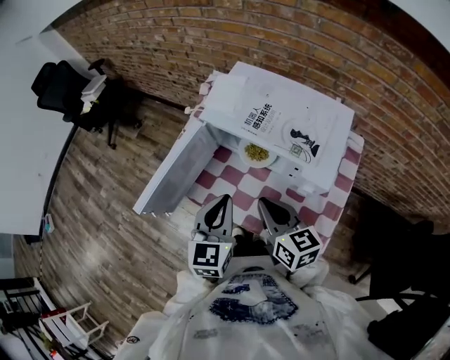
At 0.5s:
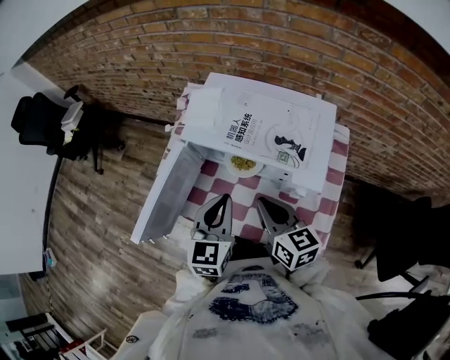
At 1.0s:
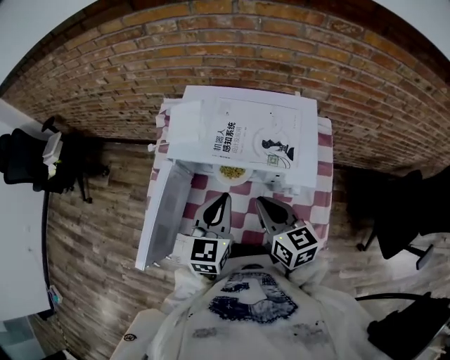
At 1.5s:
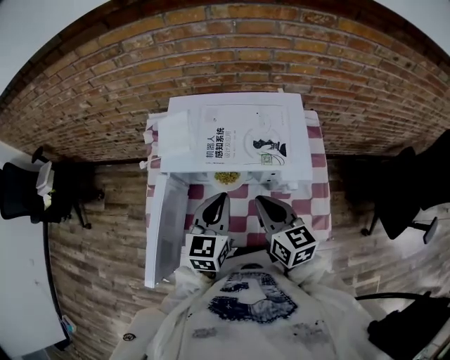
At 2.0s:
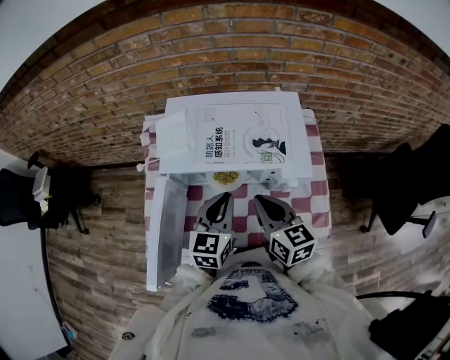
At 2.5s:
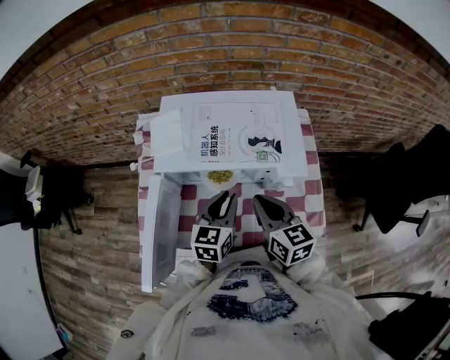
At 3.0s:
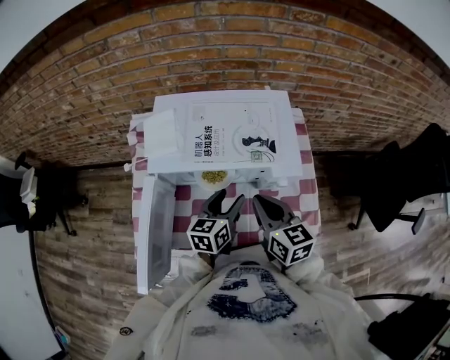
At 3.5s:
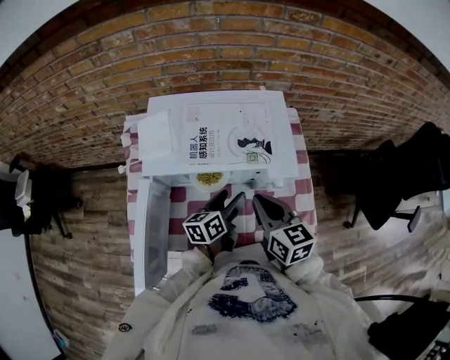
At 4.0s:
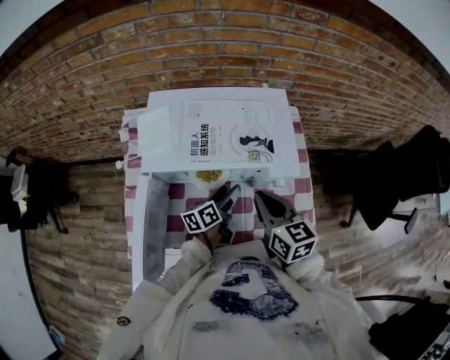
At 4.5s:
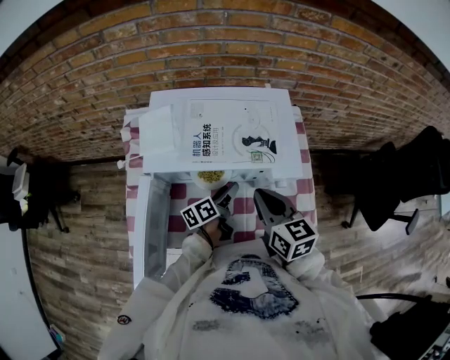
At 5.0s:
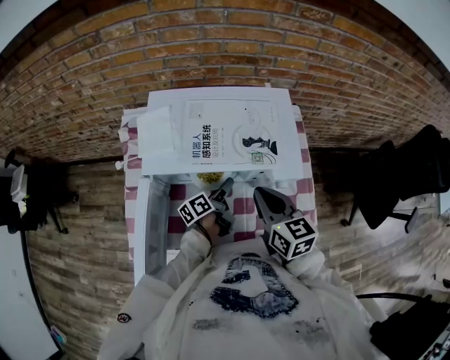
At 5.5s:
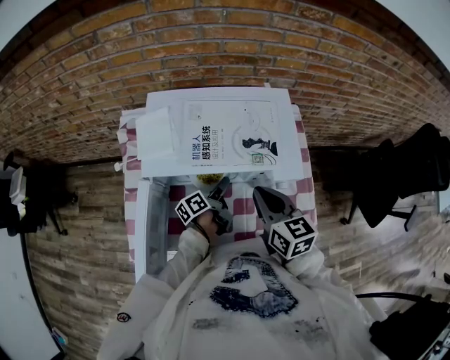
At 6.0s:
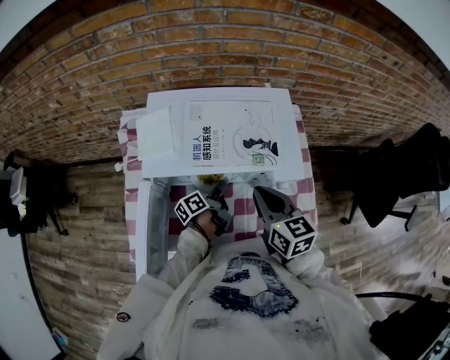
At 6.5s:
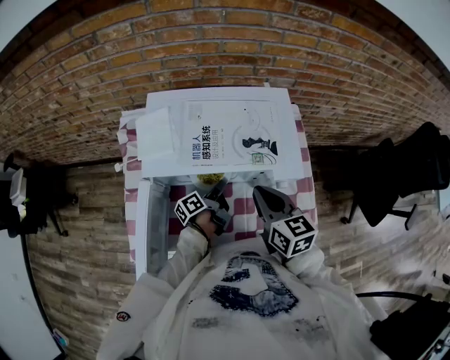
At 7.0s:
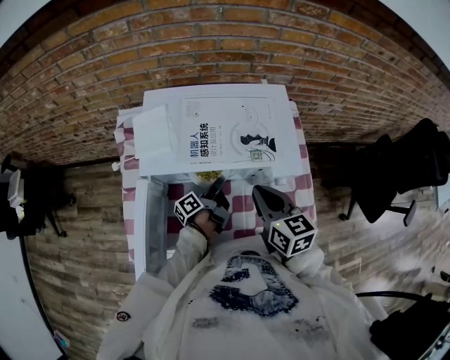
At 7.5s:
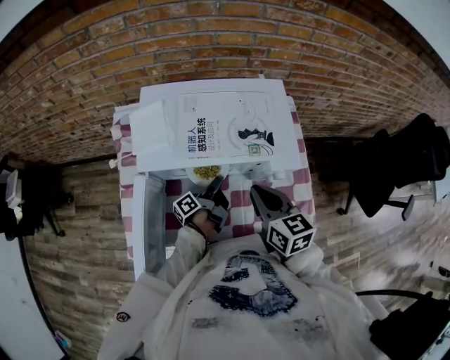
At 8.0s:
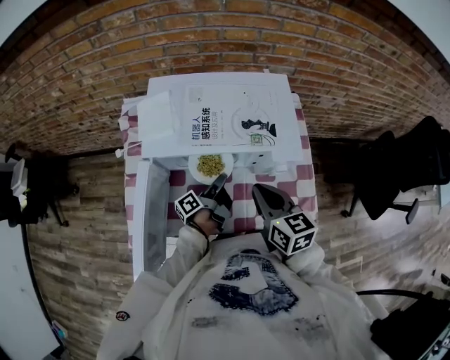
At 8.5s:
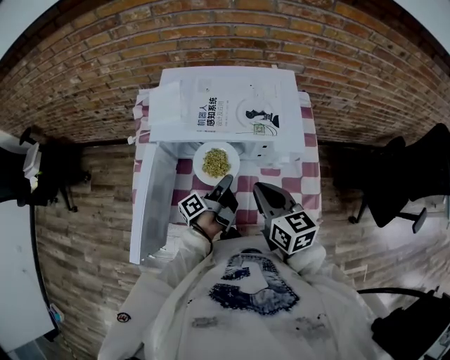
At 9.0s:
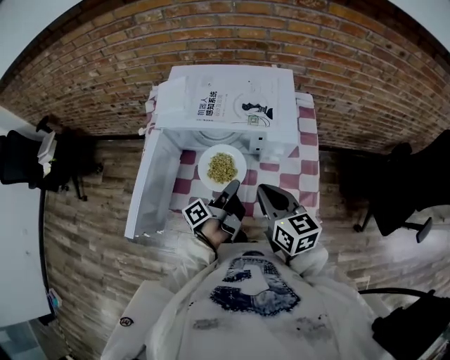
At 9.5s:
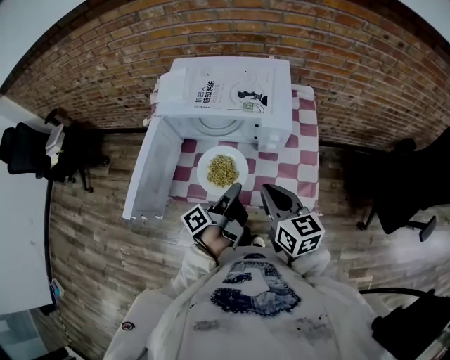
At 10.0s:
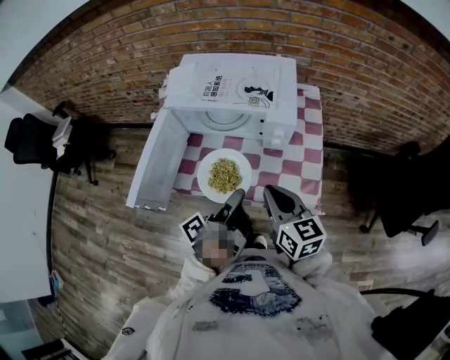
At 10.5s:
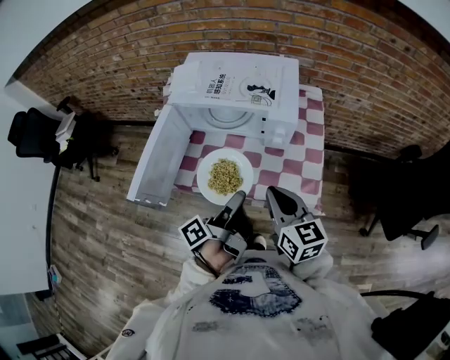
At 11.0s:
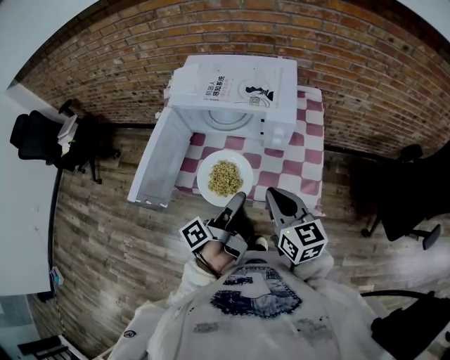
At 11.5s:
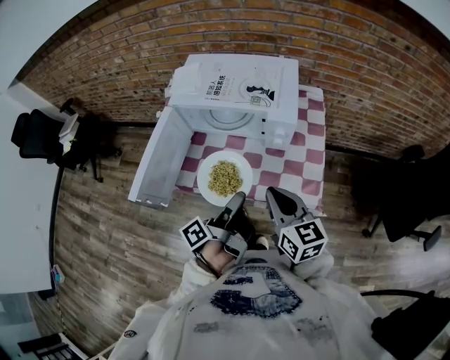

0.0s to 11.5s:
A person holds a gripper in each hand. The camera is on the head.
0.0s to 2.0s: The left gripper changes place by some 10 cm, and rotates approximately 30 degrees. Meanwhile the right gripper moves some 5 cm, and swivels roughly 30 degrees.
2.0s to 4.0s: The left gripper goes some 15 cm downward, twists roughly 50 degrees counterclockwise, seen from behind, and opens up.
4.0s to 6.0s: The left gripper goes some 5 cm downward, swivels approximately 20 degrees, and closes up.
6.0s to 7.5s: The grippers stay close to where they were, moving slightly.
7.5s to 9.5s: The left gripper travels backward and upward by some 25 cm, while the right gripper goes roughly 15 cm backward and to the right.
9.5s to 11.5s: The left gripper is displaced backward and upward by approximately 10 cm.

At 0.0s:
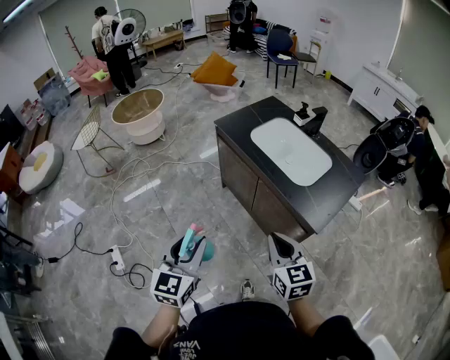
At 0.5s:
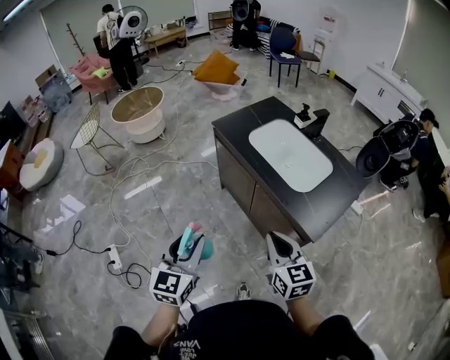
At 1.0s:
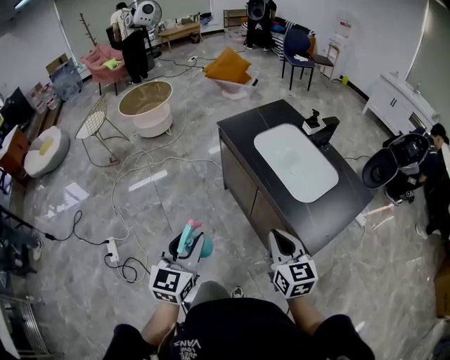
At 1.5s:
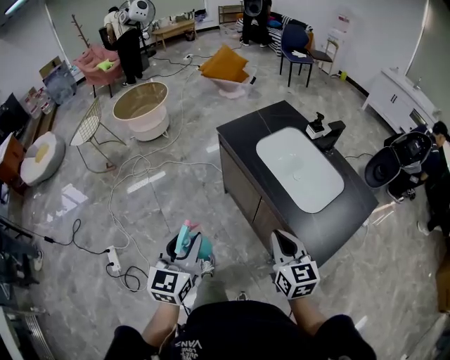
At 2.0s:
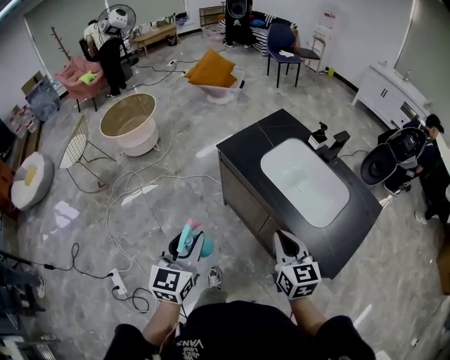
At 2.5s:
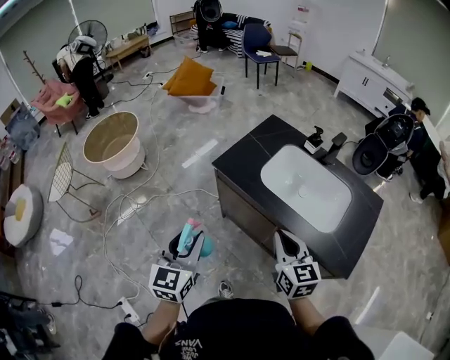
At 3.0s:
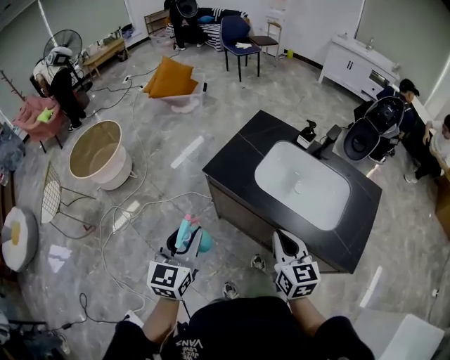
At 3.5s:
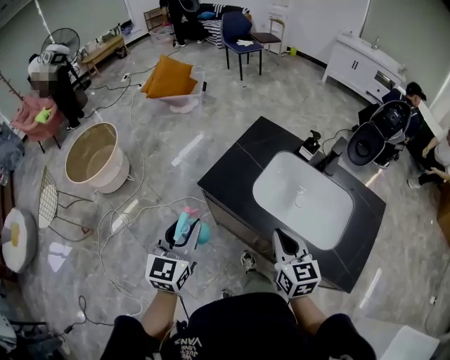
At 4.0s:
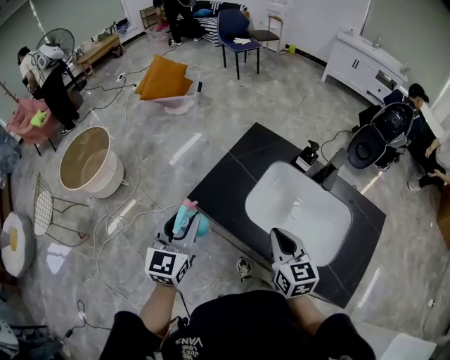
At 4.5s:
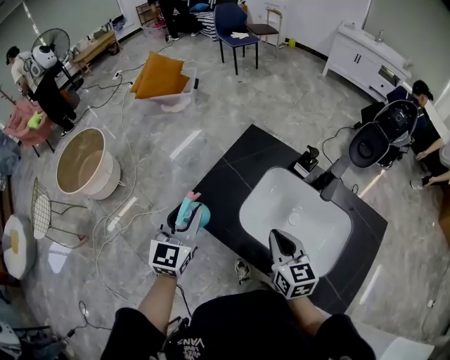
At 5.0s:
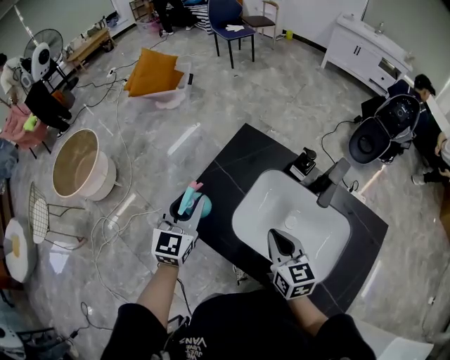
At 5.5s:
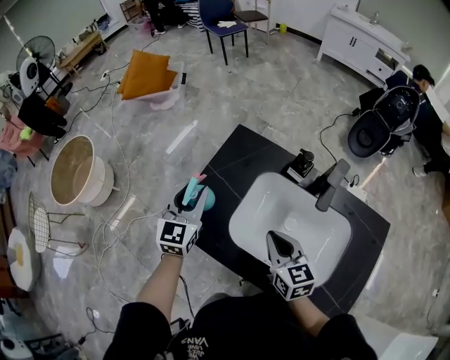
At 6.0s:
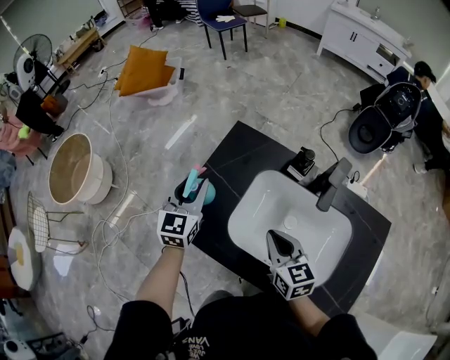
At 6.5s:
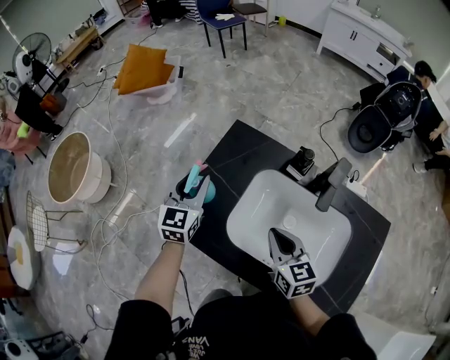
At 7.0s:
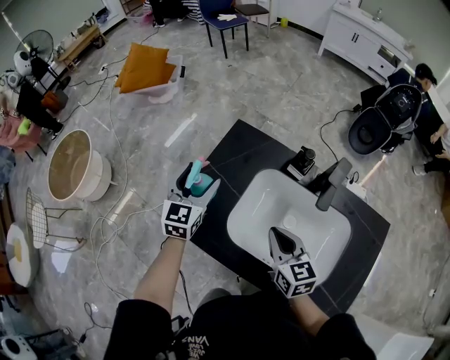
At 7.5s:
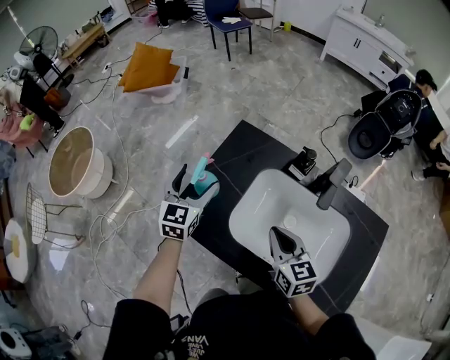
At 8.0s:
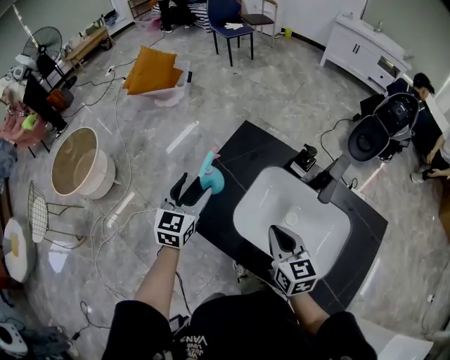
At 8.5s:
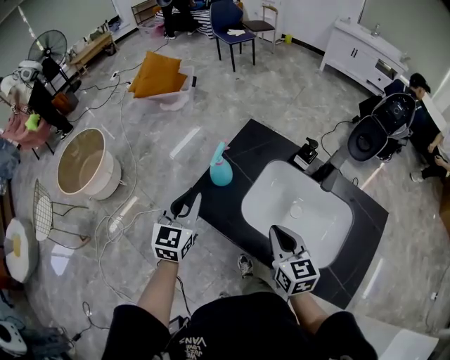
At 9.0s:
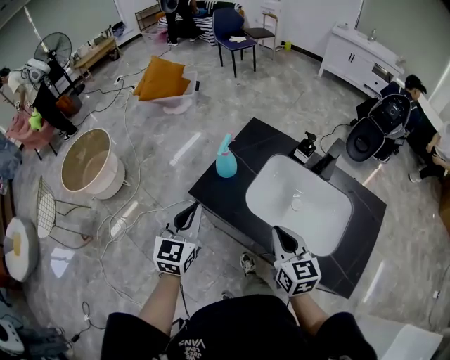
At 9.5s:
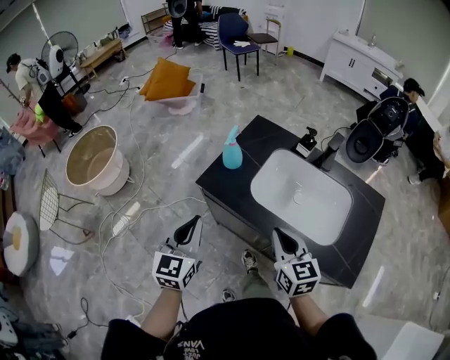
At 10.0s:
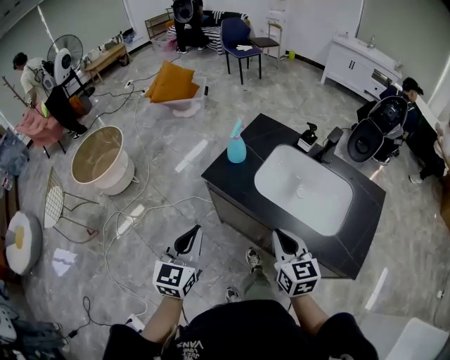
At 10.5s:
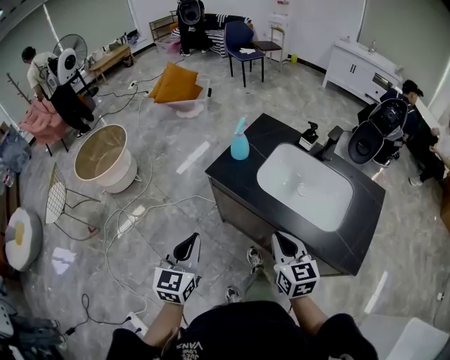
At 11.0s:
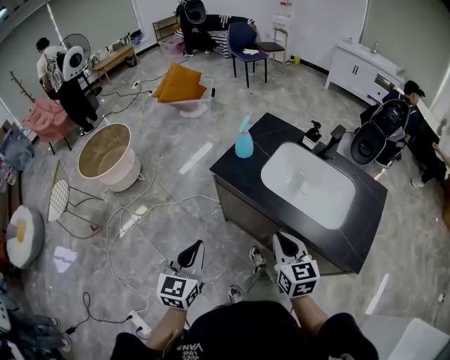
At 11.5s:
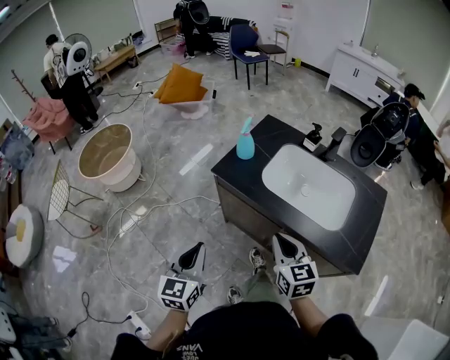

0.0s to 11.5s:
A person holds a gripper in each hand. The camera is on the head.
0.0s to 2.0s: Both grippers travel together forward, some 25 cm.
2.0s to 4.0s: Both grippers move forward, roughly 30 cm.
4.0s to 6.0s: The right gripper goes about 15 cm forward, downward and to the right. Meanwhile the left gripper travels forward and to the right by about 25 cm.
6.0s to 7.5s: The left gripper opens up.
7.5s to 9.5s: The left gripper heads backward, covering some 30 cm, and closes up. Meanwhile the right gripper heads backward, covering roughly 20 cm.
9.5s to 11.5s: The right gripper is displaced backward by some 10 cm. Meanwhile the left gripper goes approximately 15 cm backward.

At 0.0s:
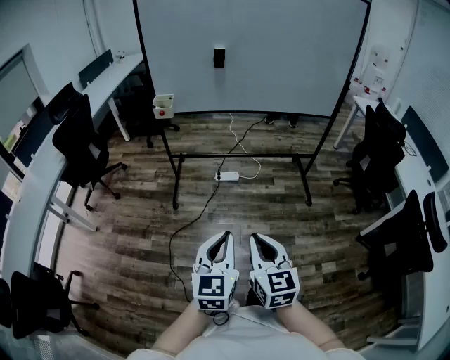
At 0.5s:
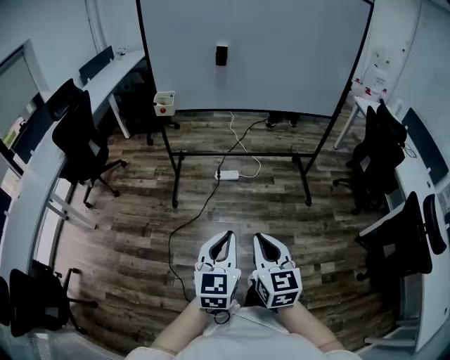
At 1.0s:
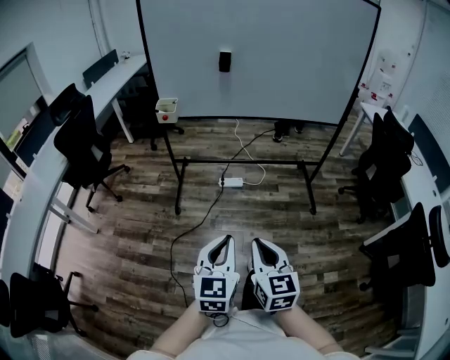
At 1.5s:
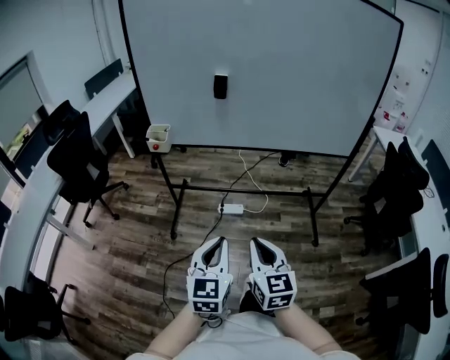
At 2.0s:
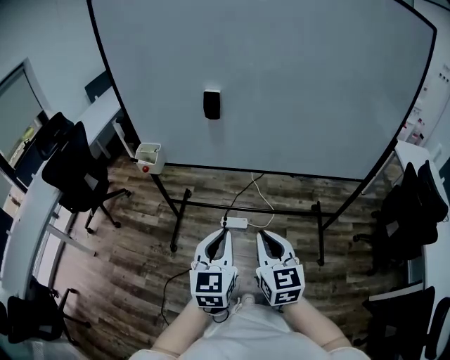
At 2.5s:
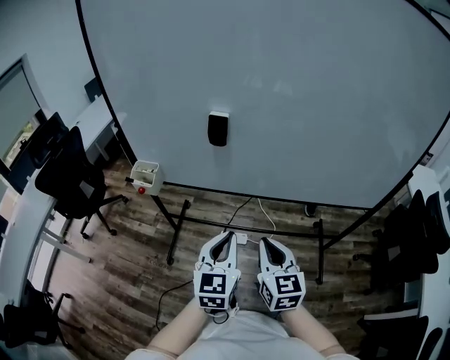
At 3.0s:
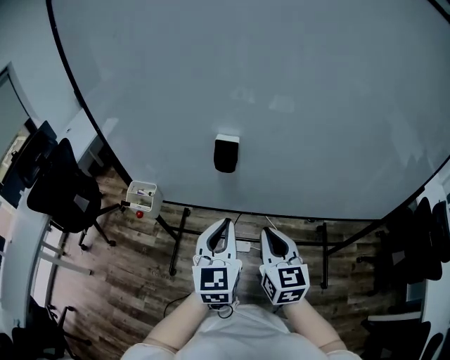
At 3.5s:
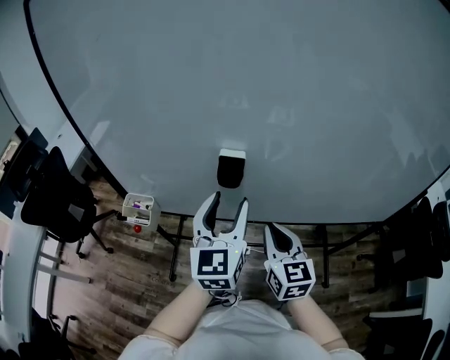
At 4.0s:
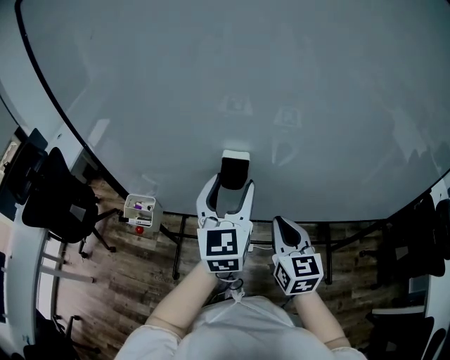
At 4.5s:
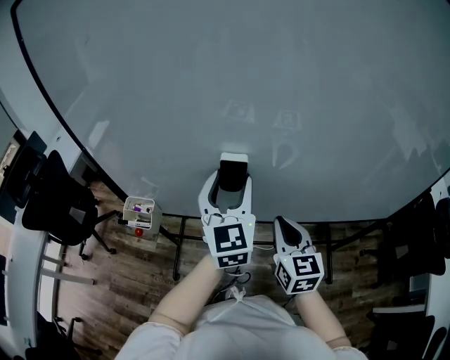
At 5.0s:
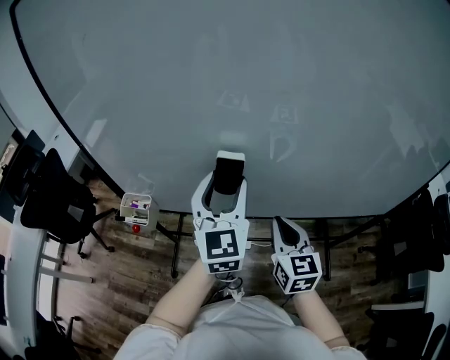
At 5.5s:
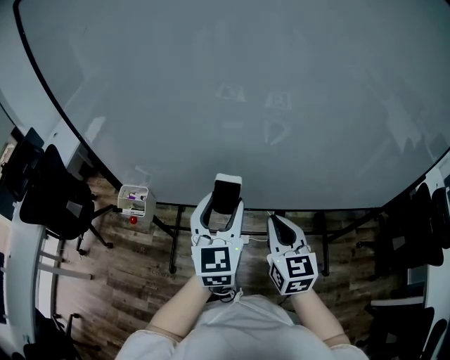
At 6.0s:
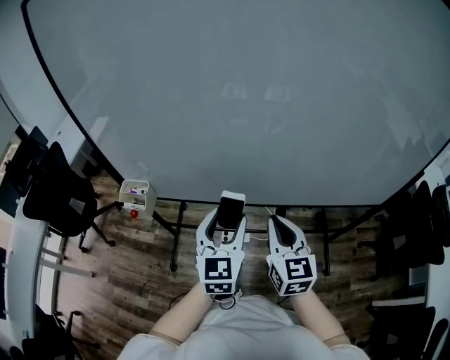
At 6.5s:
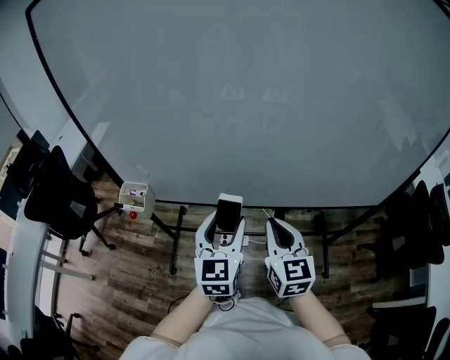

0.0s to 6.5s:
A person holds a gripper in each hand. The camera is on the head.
0.0s to 2.0s: The two grippers travel together, forward, some 40 cm.
2.0s to 4.5s: Both grippers move forward, some 35 cm. The left gripper opens up.
4.5s to 6.5s: The left gripper is displaced backward and downward by approximately 15 cm, while the right gripper goes about 10 cm backward.
